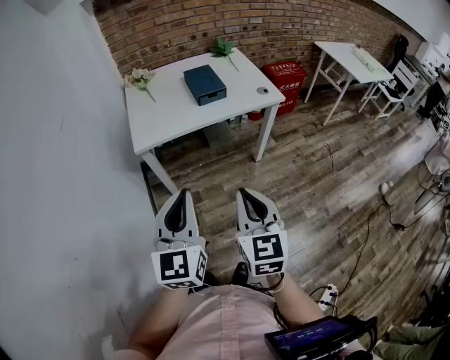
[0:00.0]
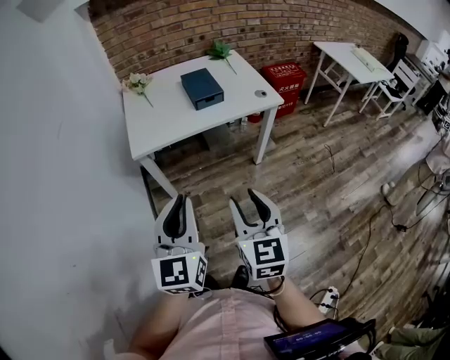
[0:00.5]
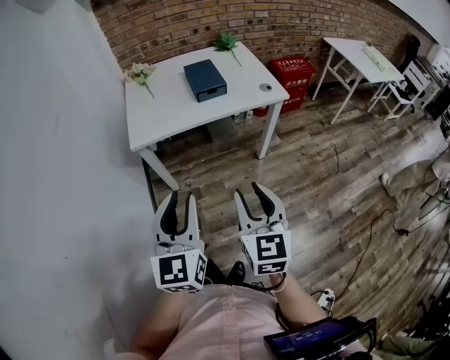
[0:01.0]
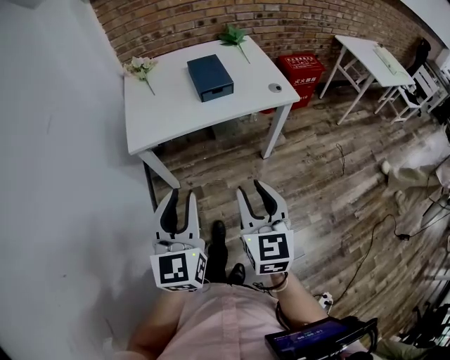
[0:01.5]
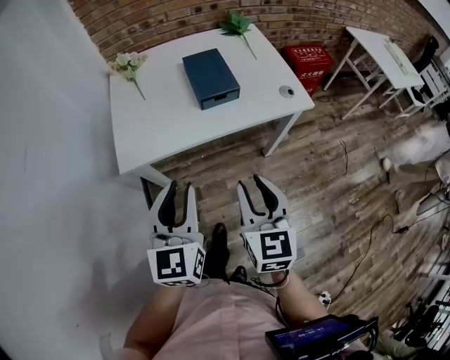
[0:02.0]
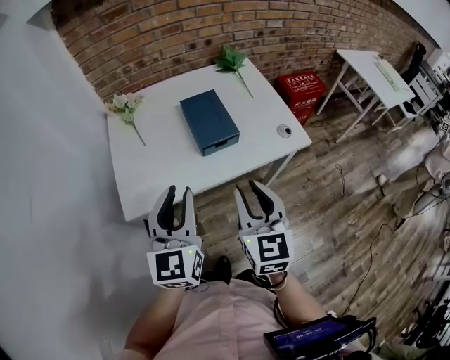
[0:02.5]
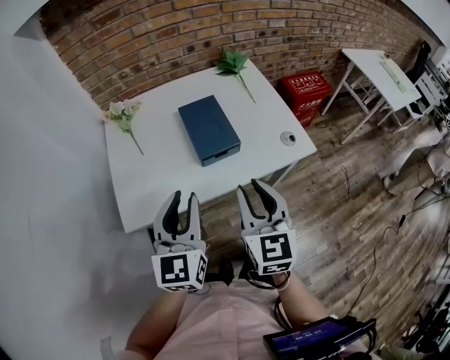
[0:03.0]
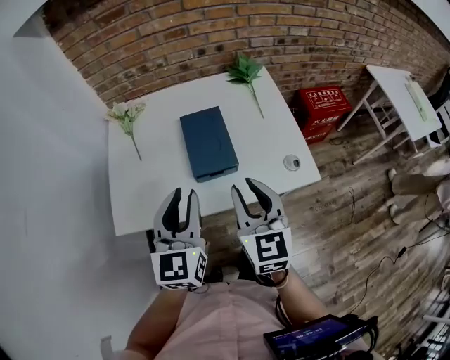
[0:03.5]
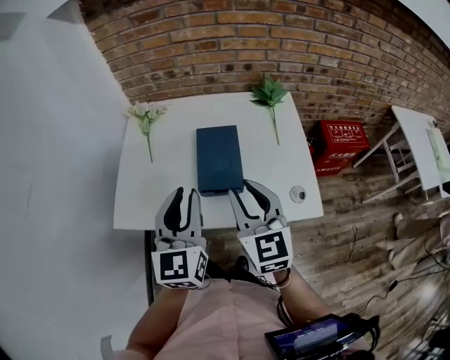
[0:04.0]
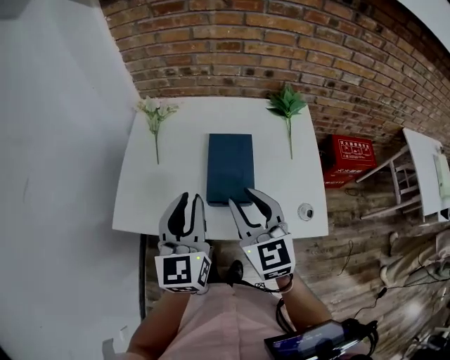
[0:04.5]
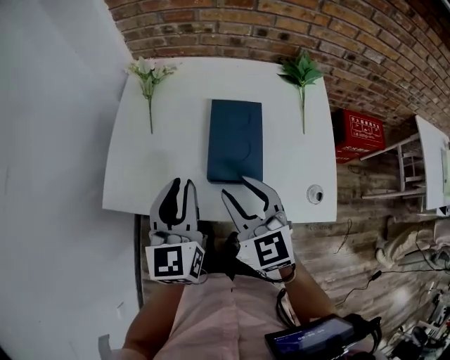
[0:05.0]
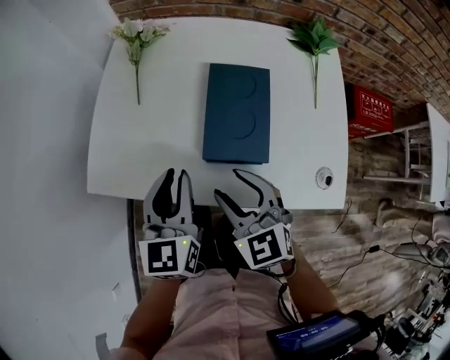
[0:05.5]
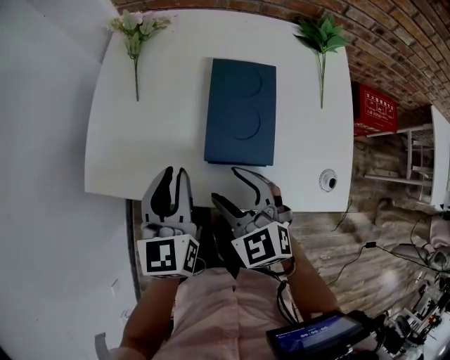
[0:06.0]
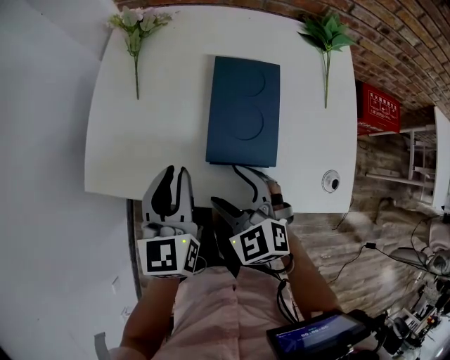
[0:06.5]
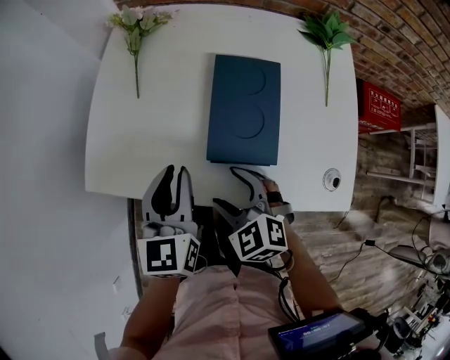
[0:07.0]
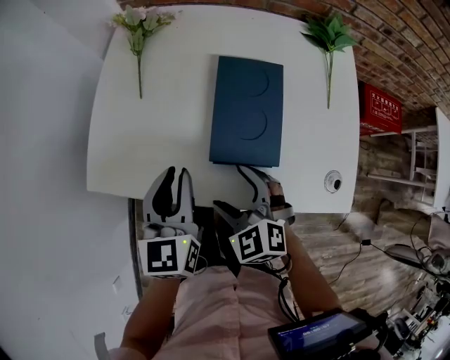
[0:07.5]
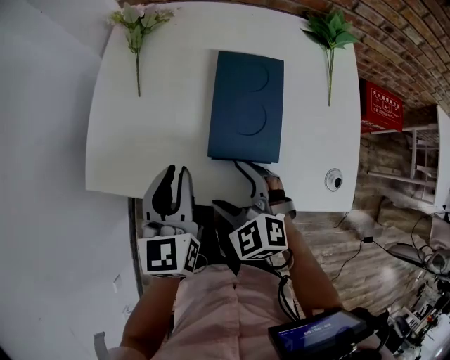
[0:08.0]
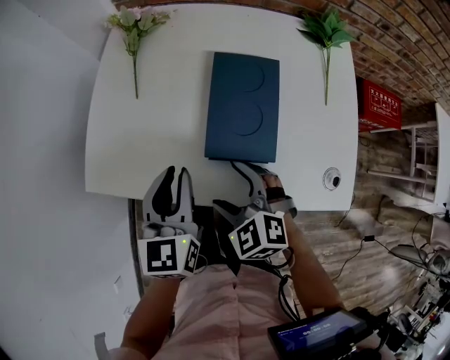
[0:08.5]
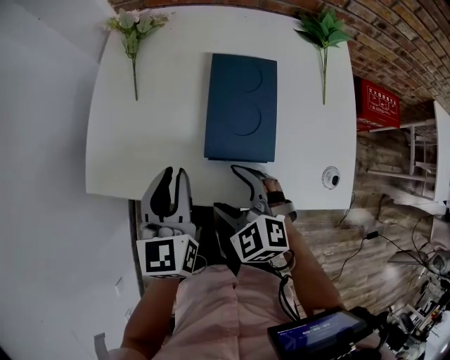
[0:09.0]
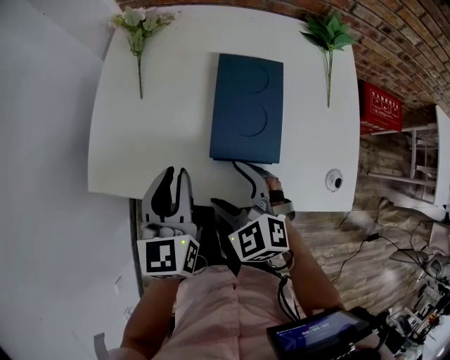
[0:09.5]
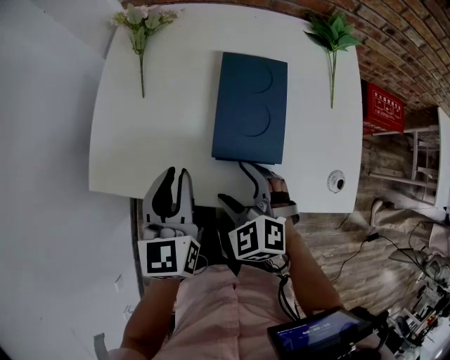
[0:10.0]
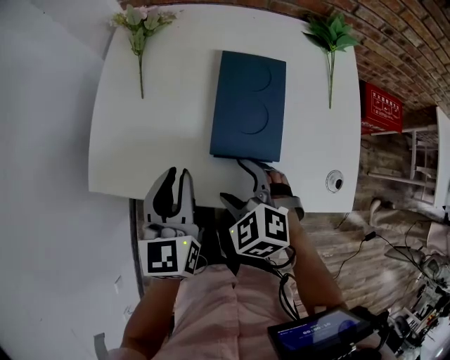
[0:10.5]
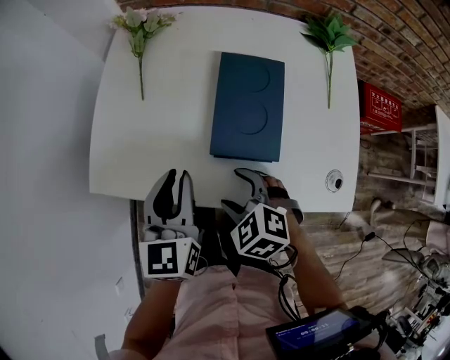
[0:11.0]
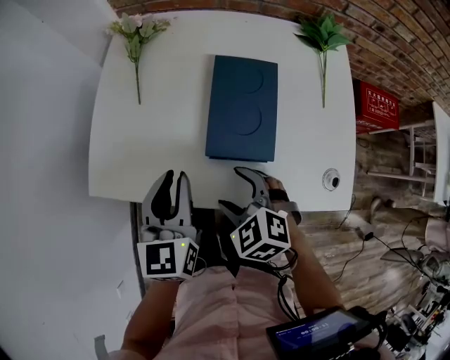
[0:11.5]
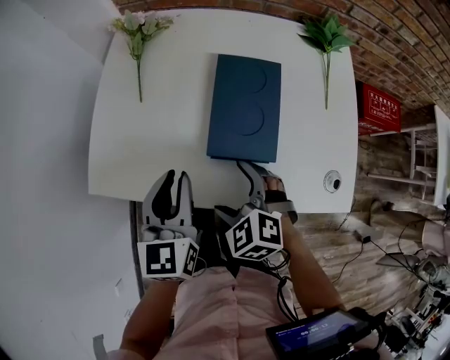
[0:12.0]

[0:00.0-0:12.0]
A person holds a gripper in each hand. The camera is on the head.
0:00.0 to 0:02.0: The two grippers go approximately 25 cm forward. The left gripper opens.
0:02.0 to 0:04.0: Both grippers move forward, some 25 cm. The right gripper turns by approximately 30 degrees.
0:04.0 to 0:06.0: The right gripper moves downward and to the left, about 20 cm, and turns by roughly 40 degrees. The left gripper goes about 15 cm downward, and turns by approximately 20 degrees.
0:06.0 to 0:08.0: The right gripper moves downward, some 5 cm, and opens.
0:08.0 to 0:12.0: The grippers make only small movements.

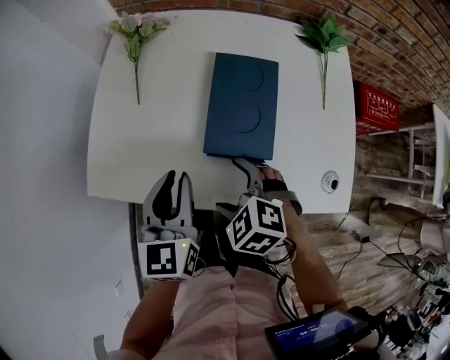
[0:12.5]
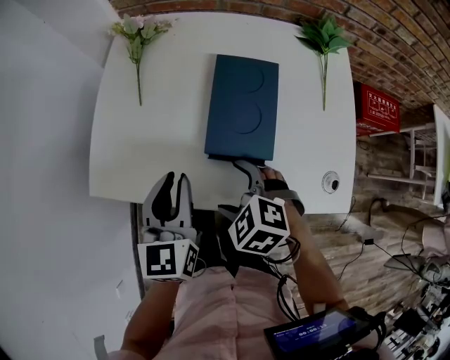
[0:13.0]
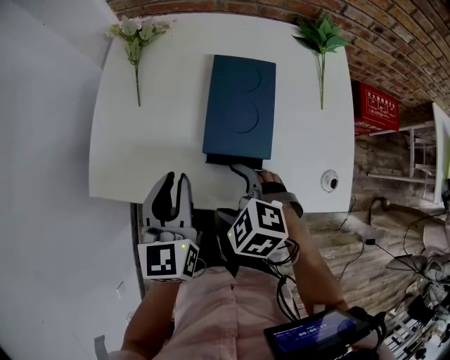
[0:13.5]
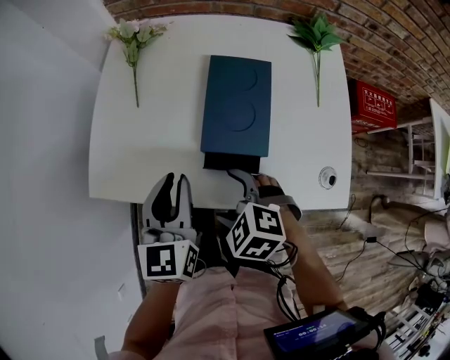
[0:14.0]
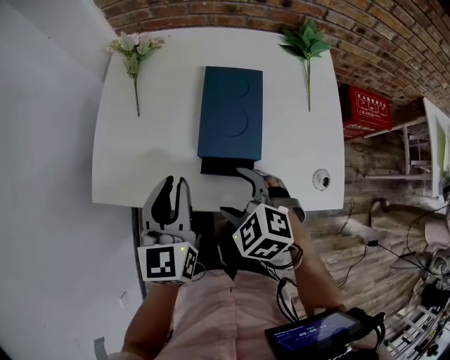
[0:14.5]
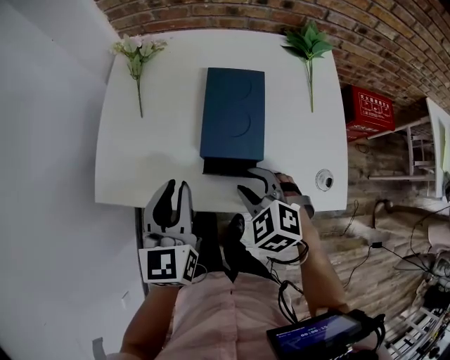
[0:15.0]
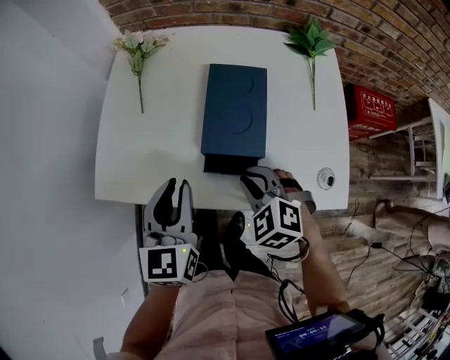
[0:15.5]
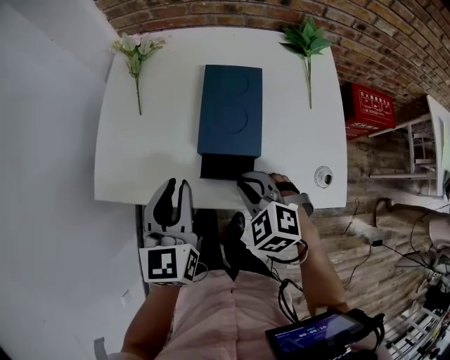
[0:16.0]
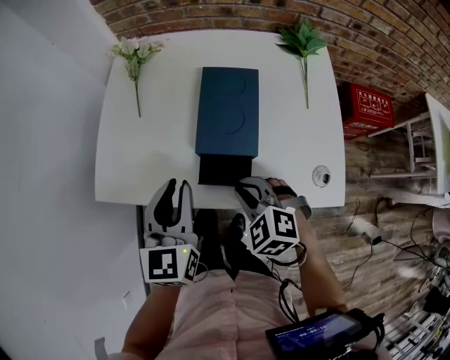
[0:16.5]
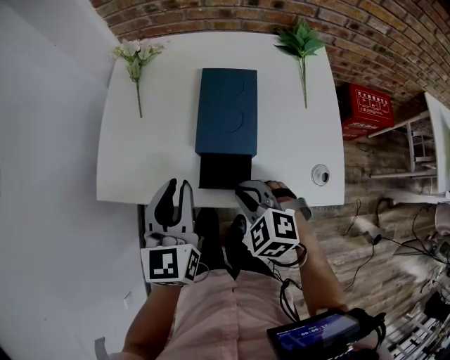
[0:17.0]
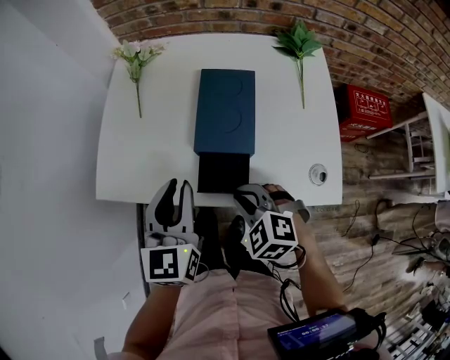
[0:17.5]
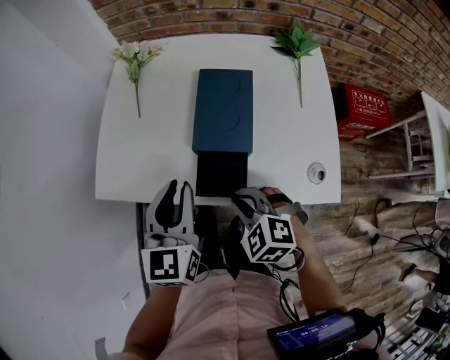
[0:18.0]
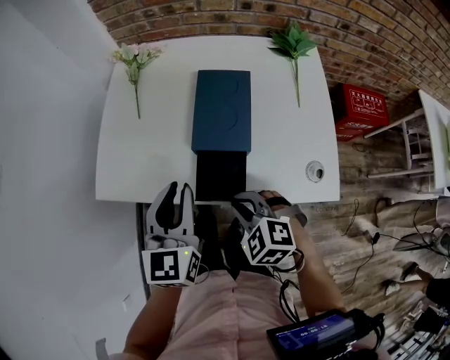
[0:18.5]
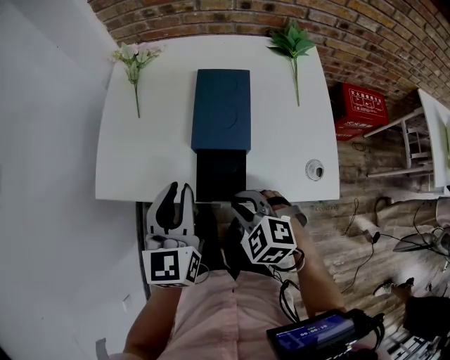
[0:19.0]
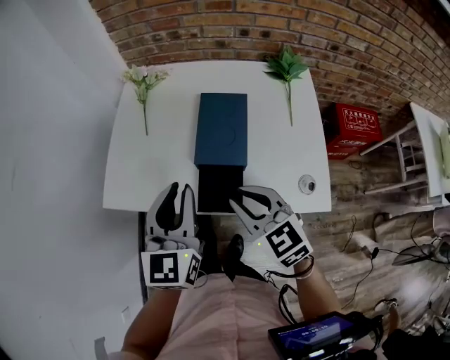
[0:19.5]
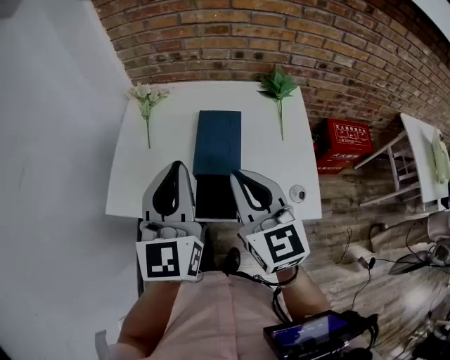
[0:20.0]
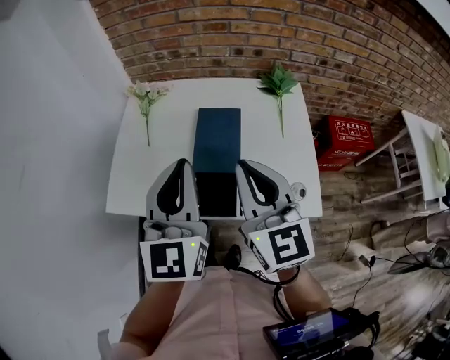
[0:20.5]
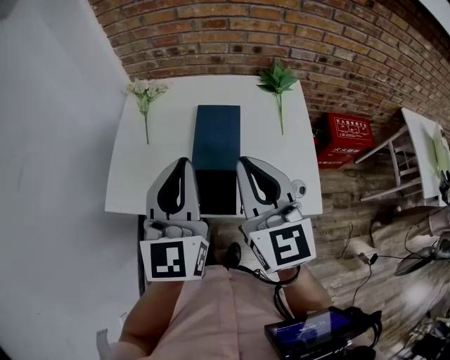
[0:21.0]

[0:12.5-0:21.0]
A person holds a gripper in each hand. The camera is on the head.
0:12.5 to 0:14.5: The grippers stay close to where they were, moving slightly.
0:14.5 to 0:16.5: The right gripper closes up.
0:16.5 to 0:19.0: The right gripper is displaced backward by roughly 5 cm.
0:19.0 to 0:21.0: The left gripper shifts approximately 15 cm upward, while the right gripper travels upward by some 30 cm, and tips its fingers upward by approximately 50 degrees.

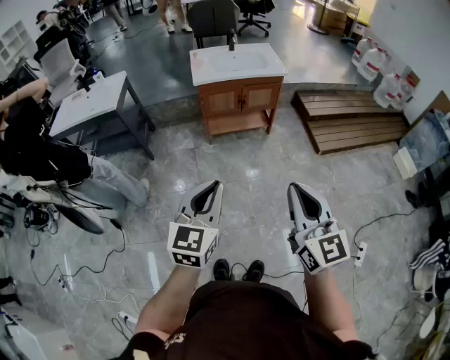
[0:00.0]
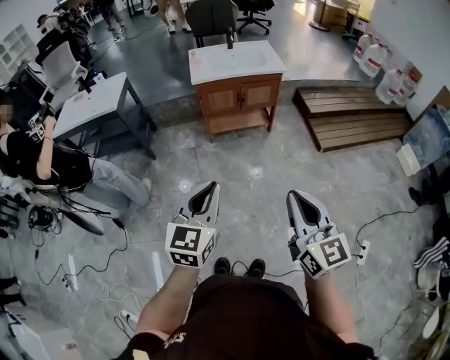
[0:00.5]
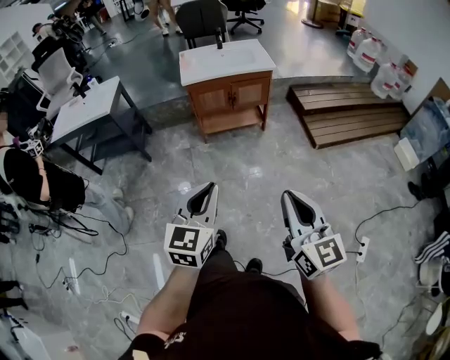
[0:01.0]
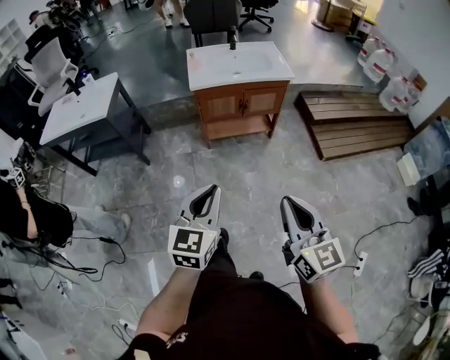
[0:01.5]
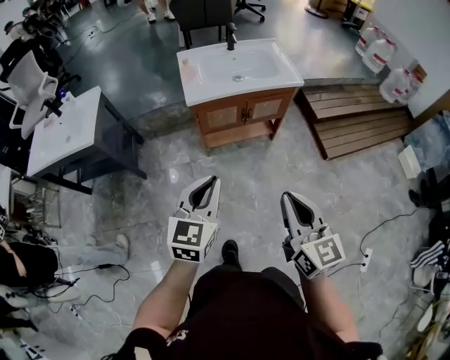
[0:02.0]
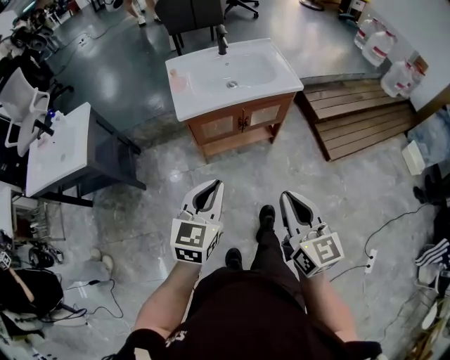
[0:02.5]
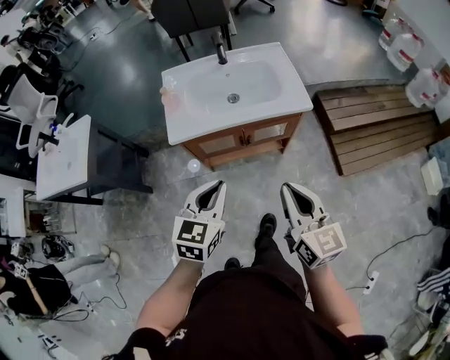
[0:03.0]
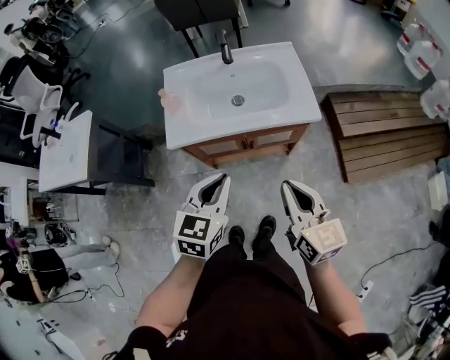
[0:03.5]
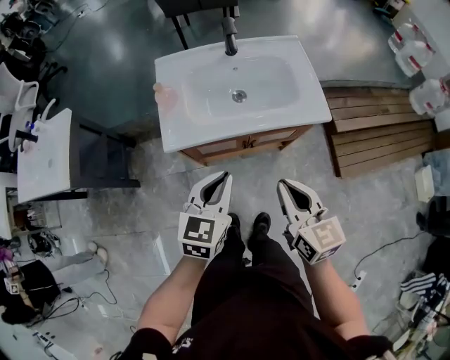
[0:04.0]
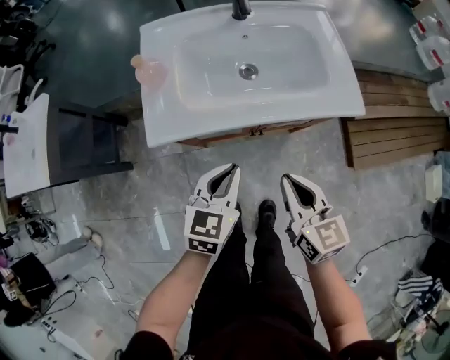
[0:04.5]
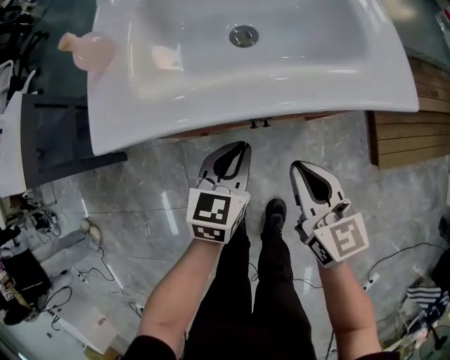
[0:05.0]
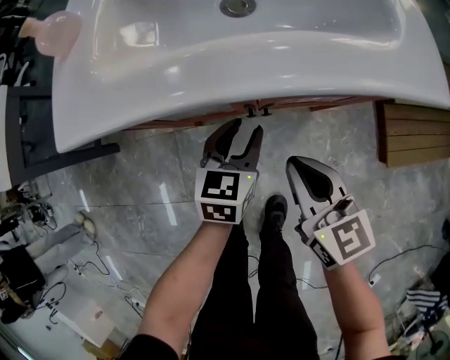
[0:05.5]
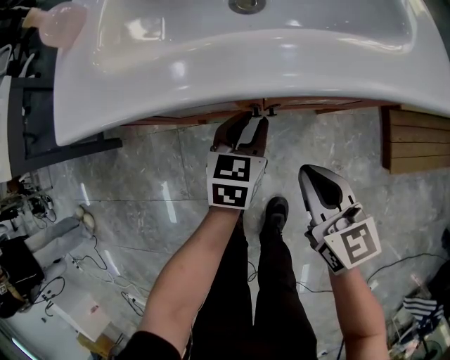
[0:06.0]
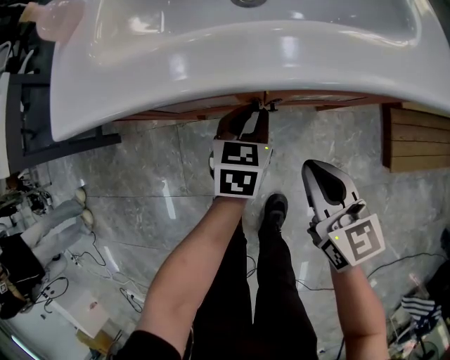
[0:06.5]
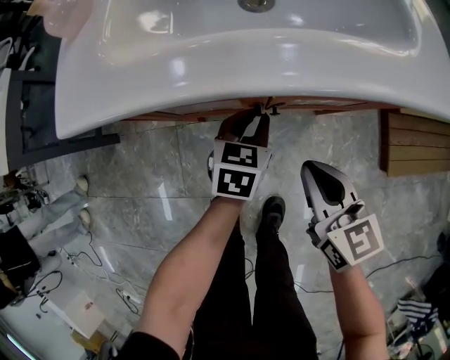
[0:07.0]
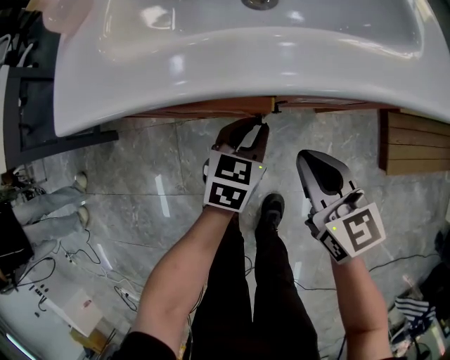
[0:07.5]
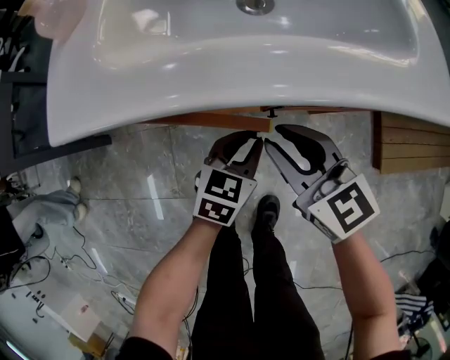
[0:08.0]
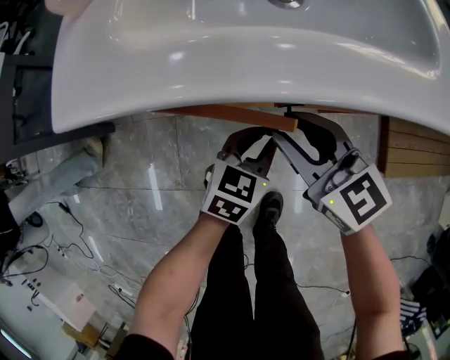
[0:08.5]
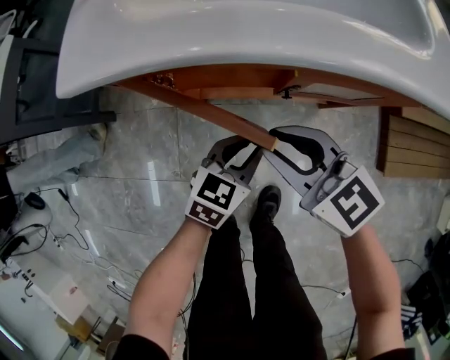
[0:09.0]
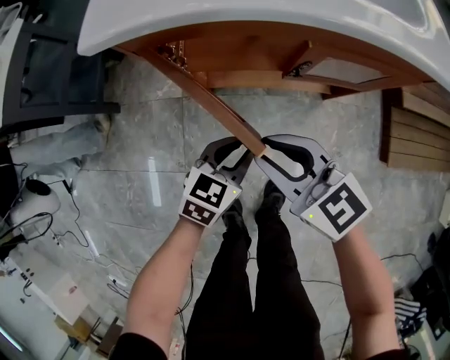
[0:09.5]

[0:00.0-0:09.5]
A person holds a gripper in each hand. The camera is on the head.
0:00.0 to 0:02.0: The two grippers go approximately 35 cm forward.
0:02.0 to 0:04.0: The grippers both shift forward by roughly 40 cm.
0:04.0 to 0:05.5: Both grippers travel together downward, roughly 40 cm. The left gripper opens its fingers.
0:05.5 to 0:07.5: The left gripper closes its fingers.
0:07.5 to 0:09.5: The right gripper moves to the left and backward, about 15 cm, swivels roughly 30 degrees, and opens up; the left gripper travels backward and to the left by some 15 cm.
